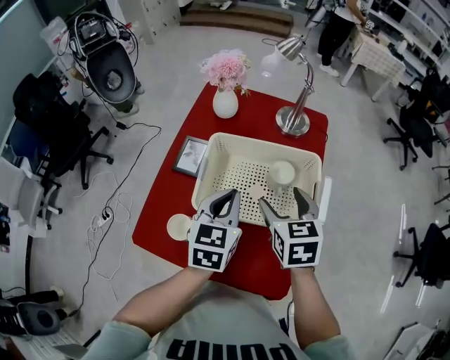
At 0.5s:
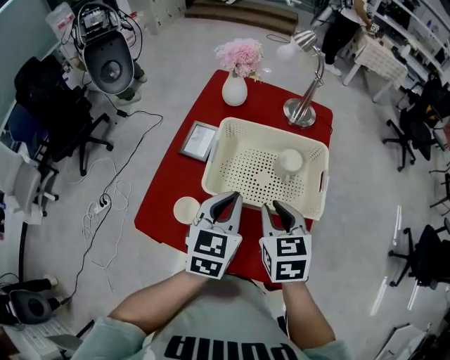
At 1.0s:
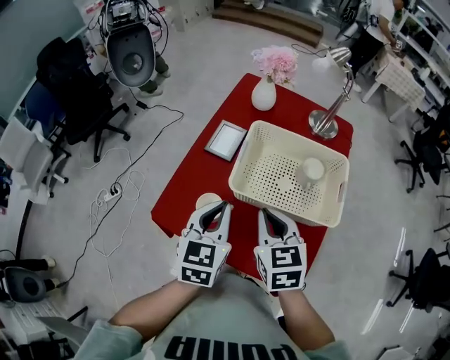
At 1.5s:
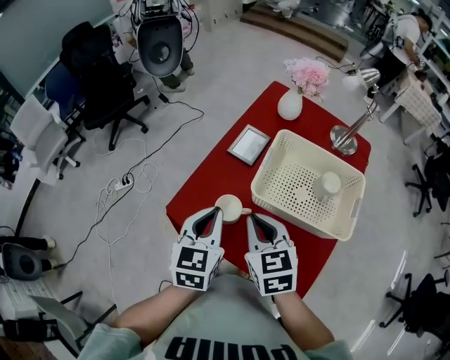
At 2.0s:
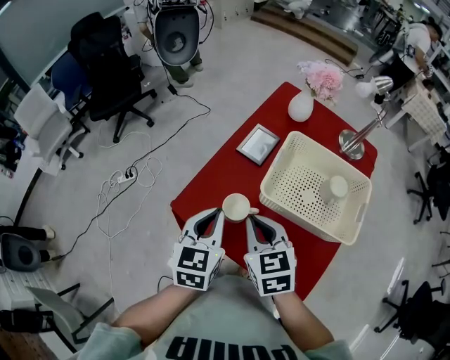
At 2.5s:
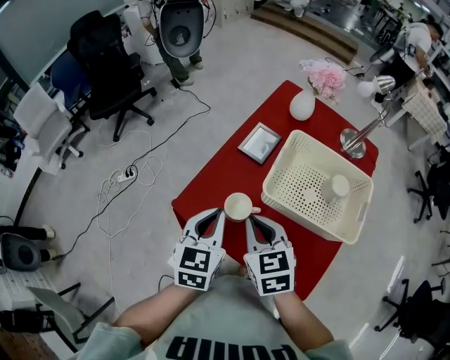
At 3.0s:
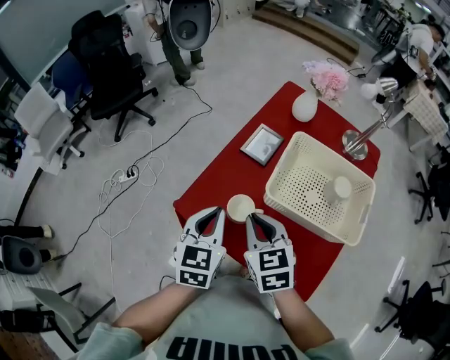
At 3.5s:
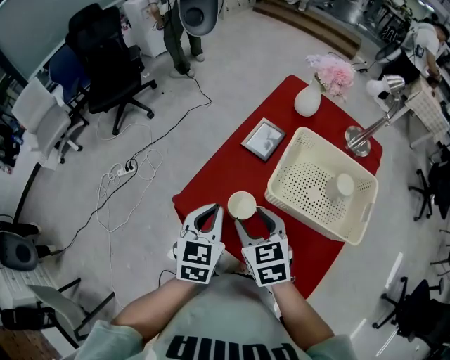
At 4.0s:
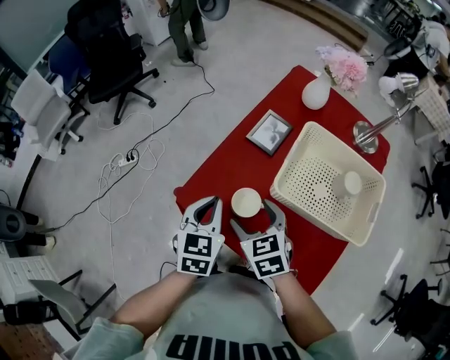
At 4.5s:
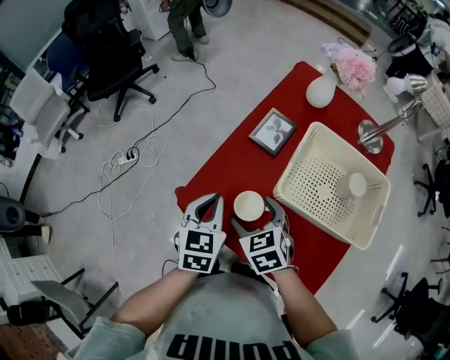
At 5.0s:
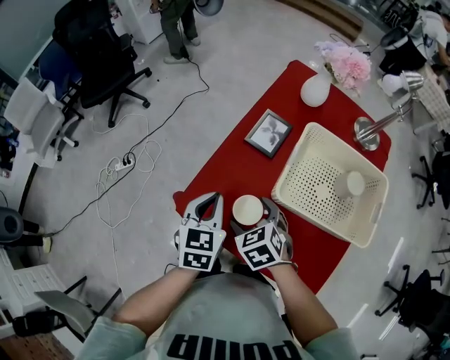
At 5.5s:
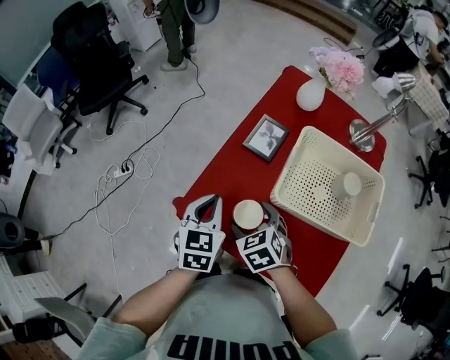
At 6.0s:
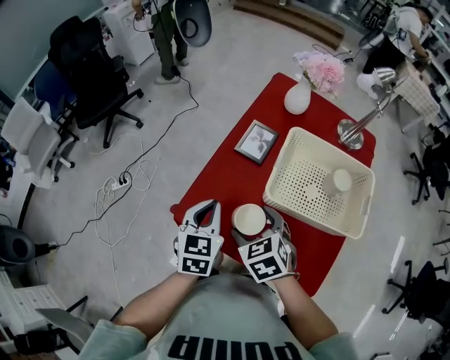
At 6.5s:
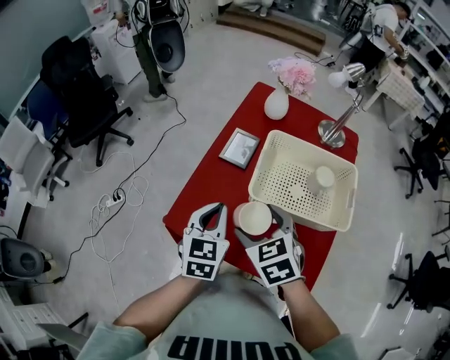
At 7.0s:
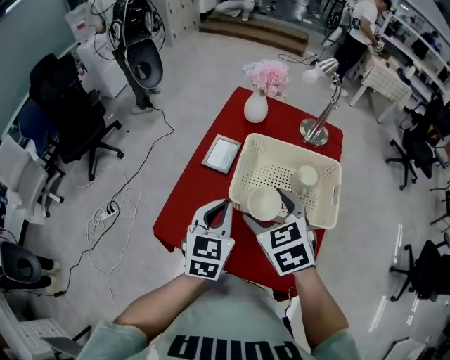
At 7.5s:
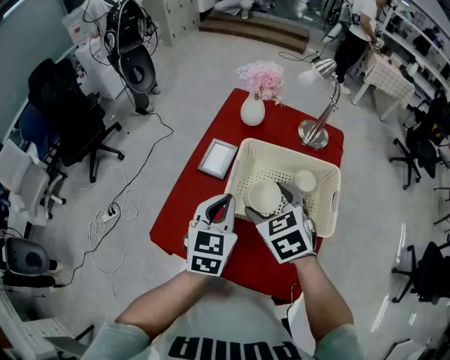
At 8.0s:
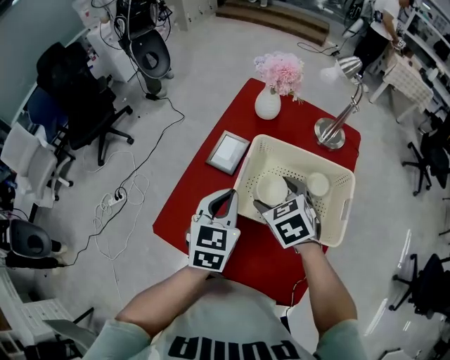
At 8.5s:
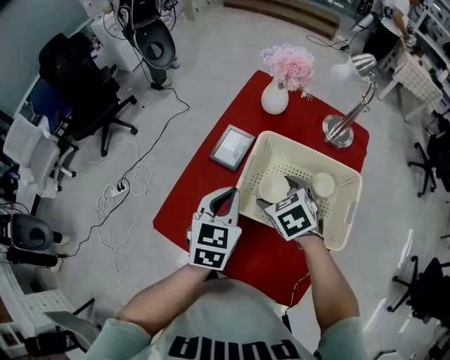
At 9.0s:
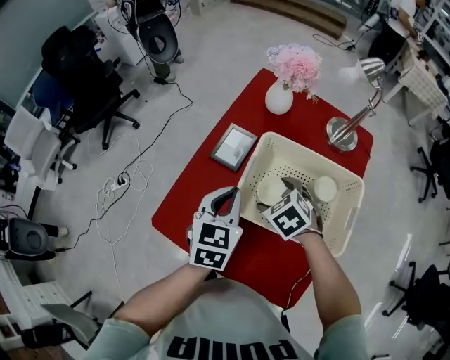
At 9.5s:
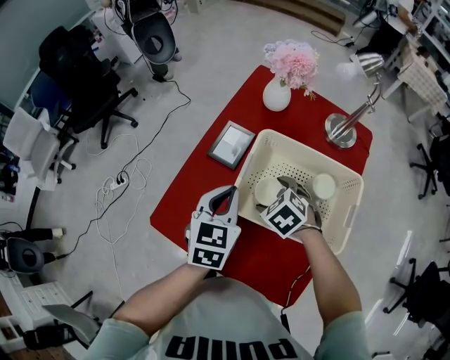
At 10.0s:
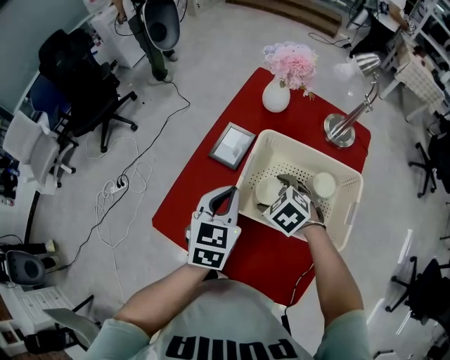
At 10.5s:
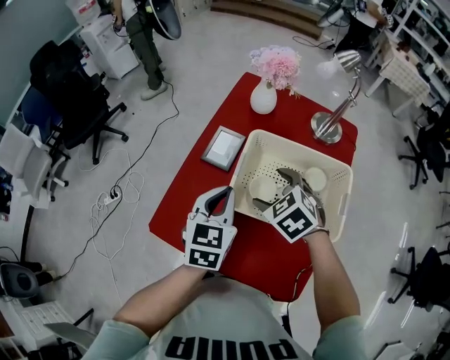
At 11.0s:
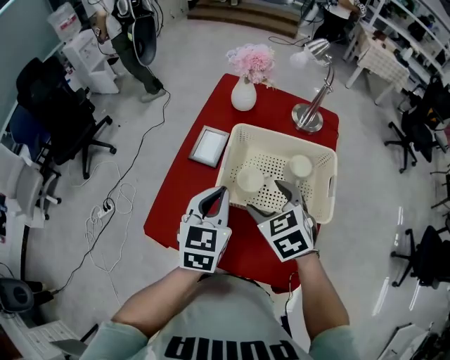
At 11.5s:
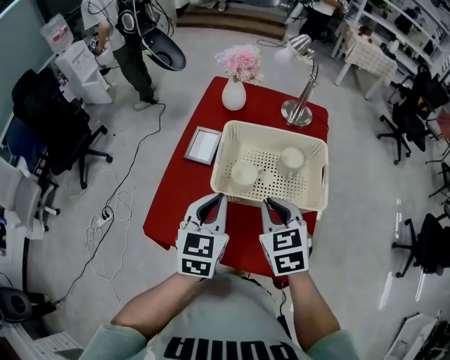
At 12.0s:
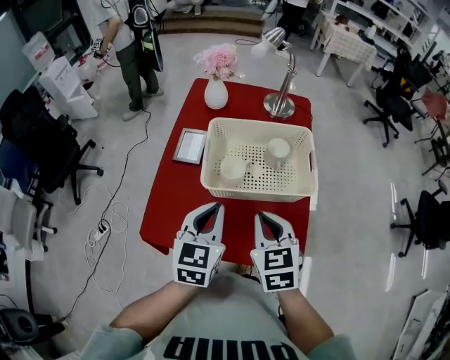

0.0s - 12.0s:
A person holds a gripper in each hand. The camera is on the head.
0.0s - 2.0s: The grippers both shift to the left and backward by some 25 cm. The right gripper changes its angle by approximately 30 degrees, and closes up, while the left gripper swivels roughly 20 degrees.
2.0s - 4.0s: The two grippers go roughly 5 cm downward. The right gripper opens up.
4.0s - 6.0s: The grippers make only small movements.
6.0s - 8.0s: The left gripper moves to the right, forward and upward, roughly 15 cm, while the right gripper goes approximately 20 cm to the right and forward.
8.0s - 10.0s: The right gripper heads downward, covering about 10 cm, and rotates about 20 degrees.
10.0s - 12.0s: The left gripper moves some 15 cm. Meanwhile the right gripper ends up some 20 cm from where it was, swivels roughly 60 degrees, and closes its fingers.

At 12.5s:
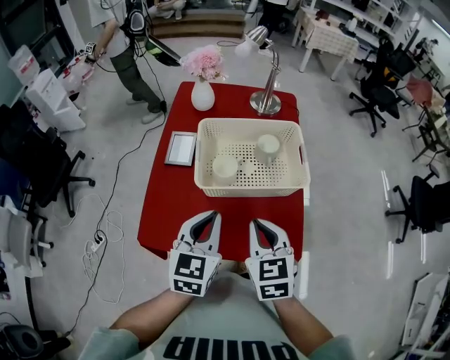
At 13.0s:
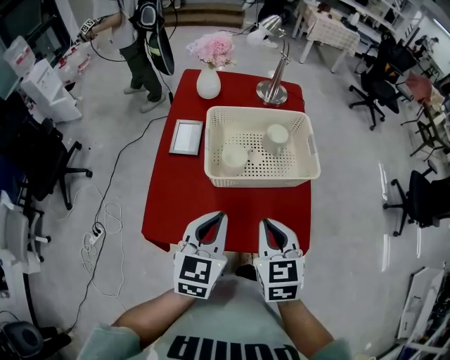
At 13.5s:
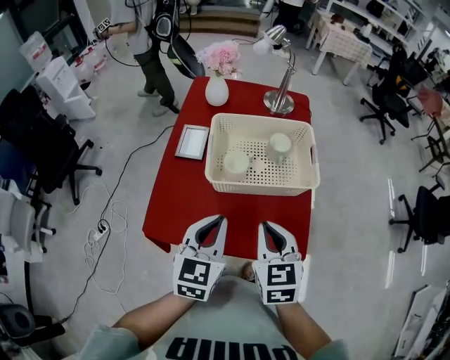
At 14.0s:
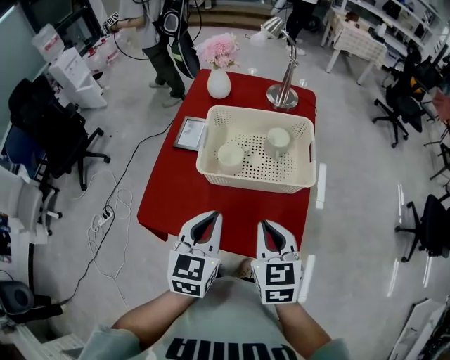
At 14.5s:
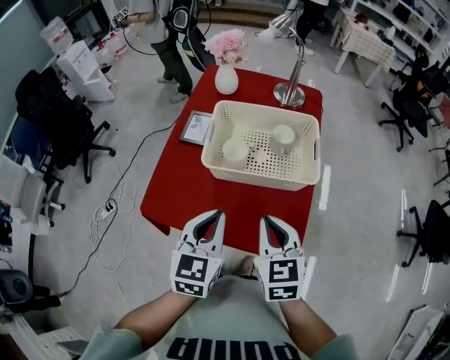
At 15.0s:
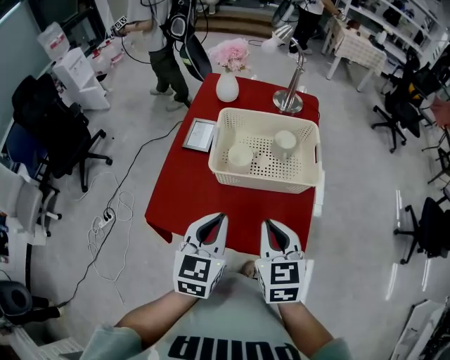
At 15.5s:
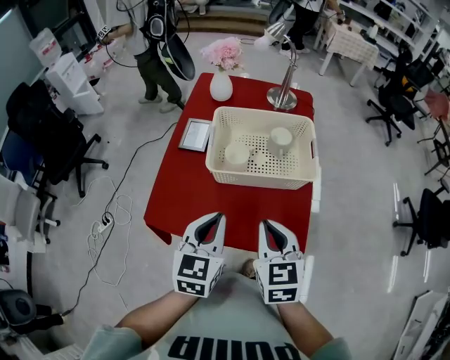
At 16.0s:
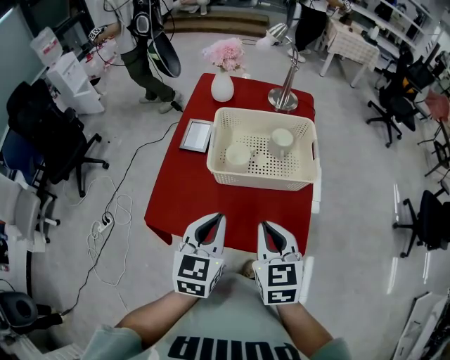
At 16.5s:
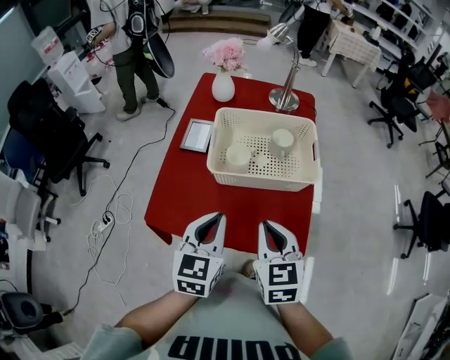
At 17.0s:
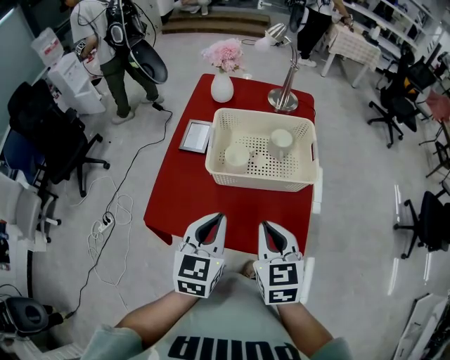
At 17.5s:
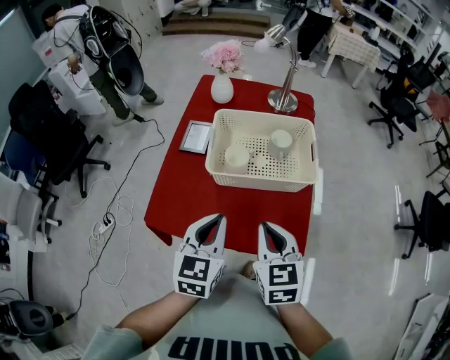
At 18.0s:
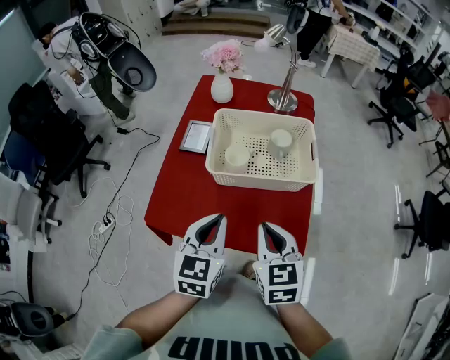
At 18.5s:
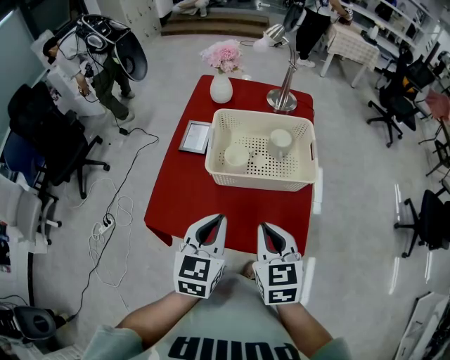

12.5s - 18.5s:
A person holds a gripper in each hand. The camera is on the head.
12.5s - 14.5s: The left gripper shifts by roughly 5 cm.
14.5s - 16.5s: There are only small adjustments of the grippers.
16.5s - 18.5s: The two grippers keep their place.

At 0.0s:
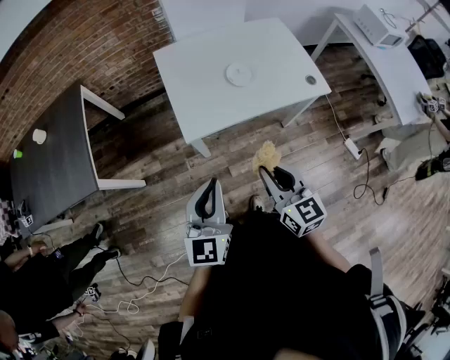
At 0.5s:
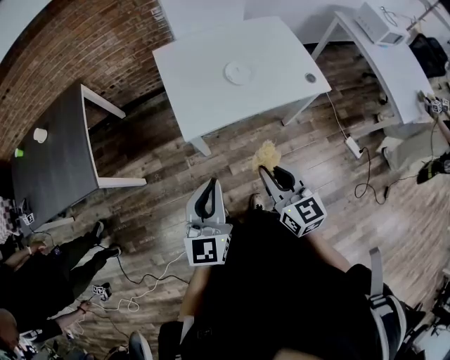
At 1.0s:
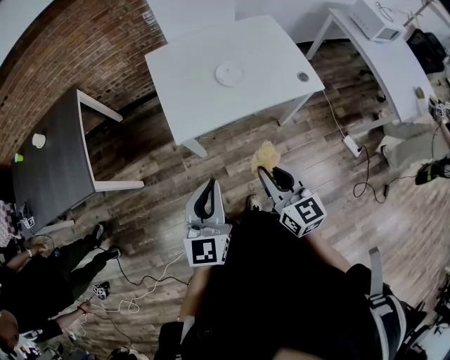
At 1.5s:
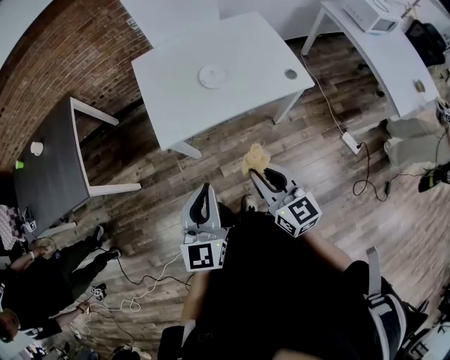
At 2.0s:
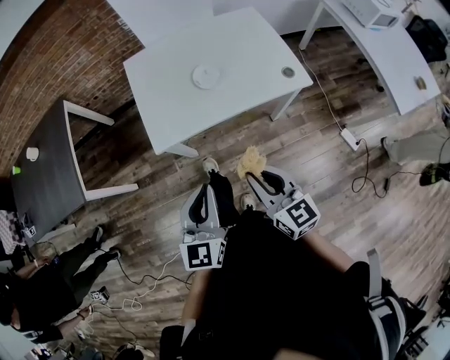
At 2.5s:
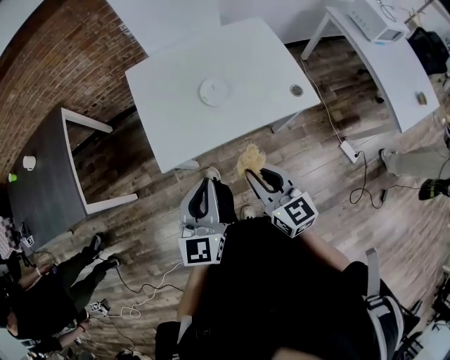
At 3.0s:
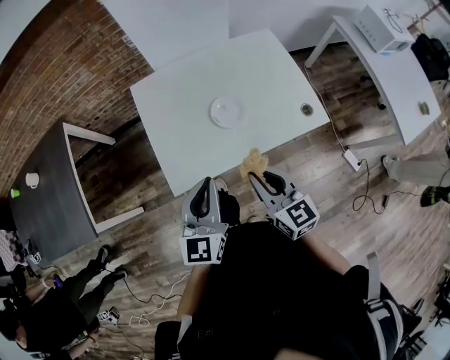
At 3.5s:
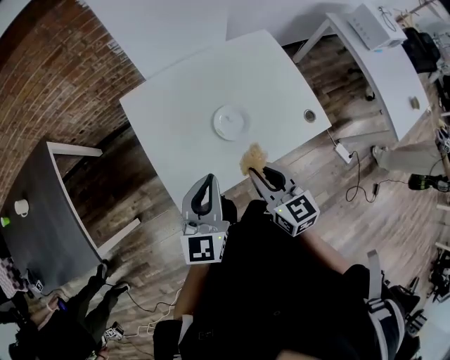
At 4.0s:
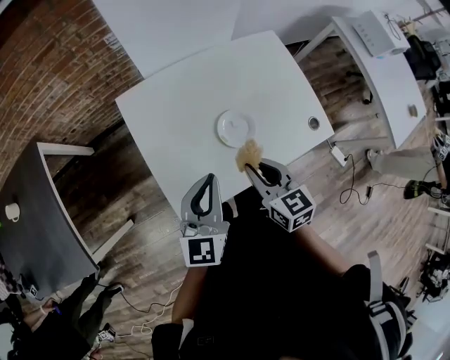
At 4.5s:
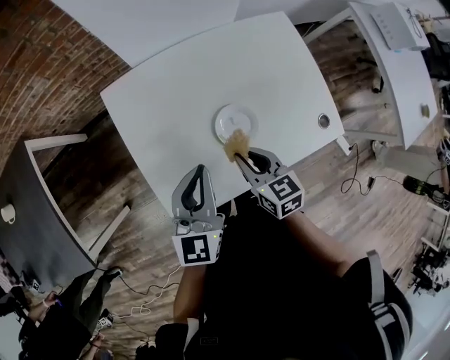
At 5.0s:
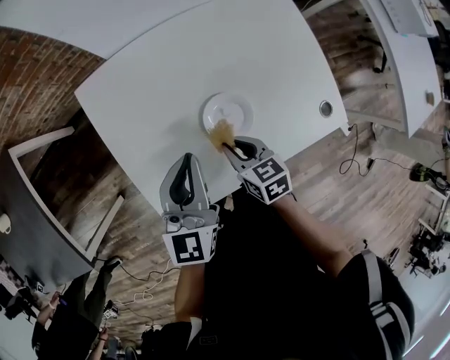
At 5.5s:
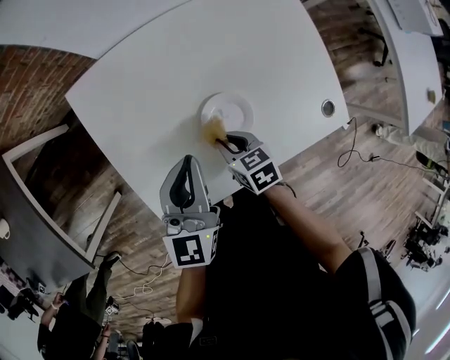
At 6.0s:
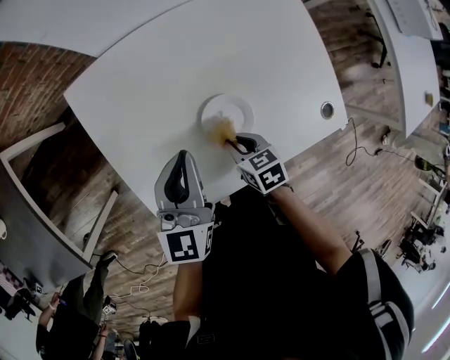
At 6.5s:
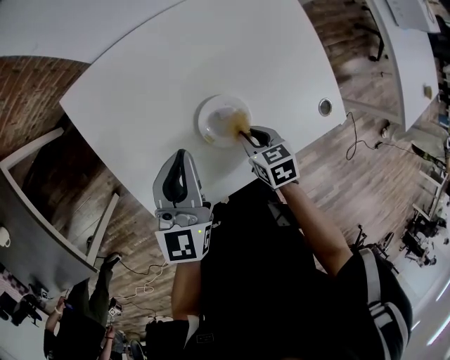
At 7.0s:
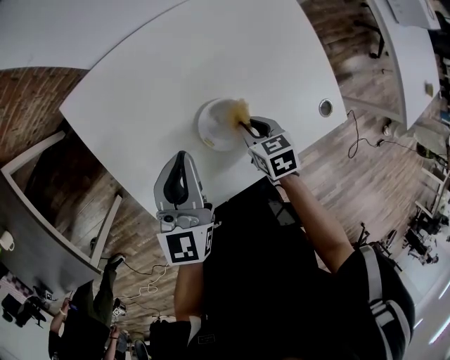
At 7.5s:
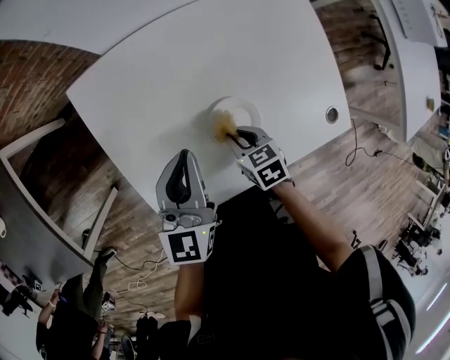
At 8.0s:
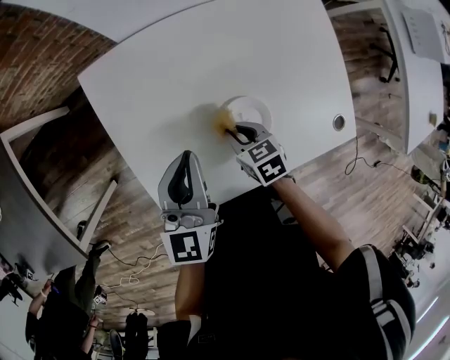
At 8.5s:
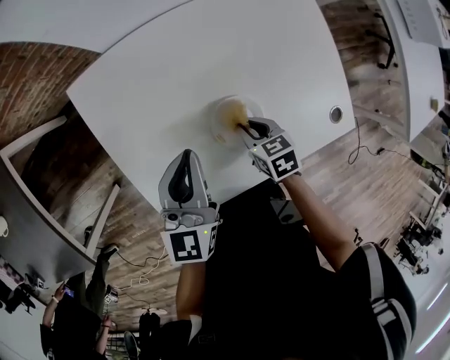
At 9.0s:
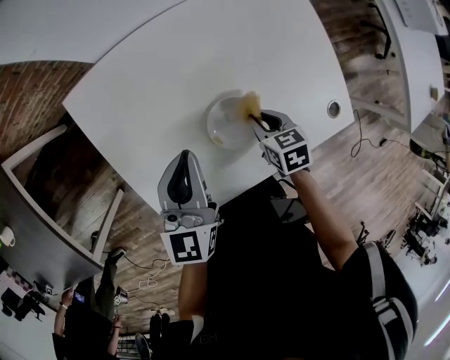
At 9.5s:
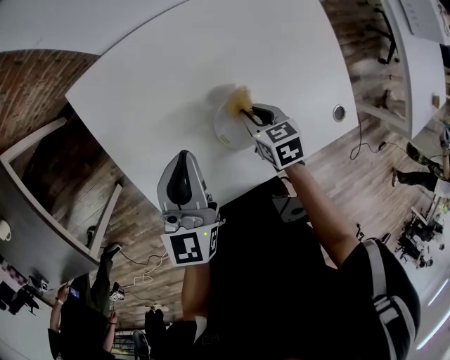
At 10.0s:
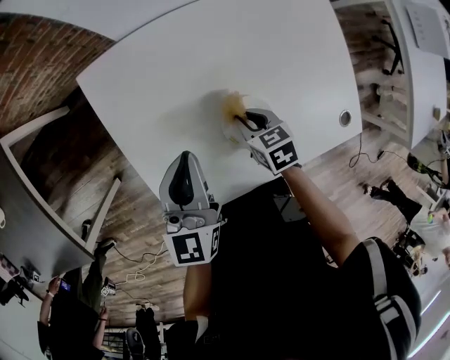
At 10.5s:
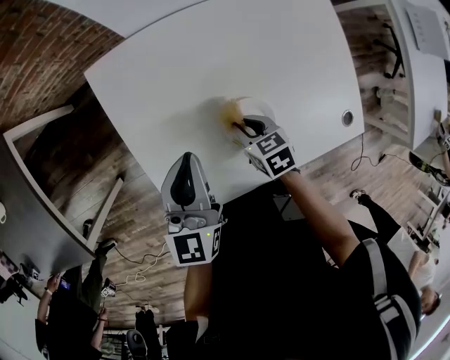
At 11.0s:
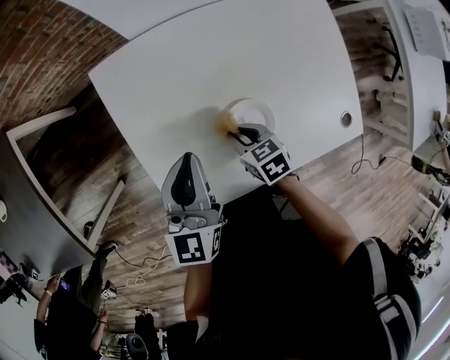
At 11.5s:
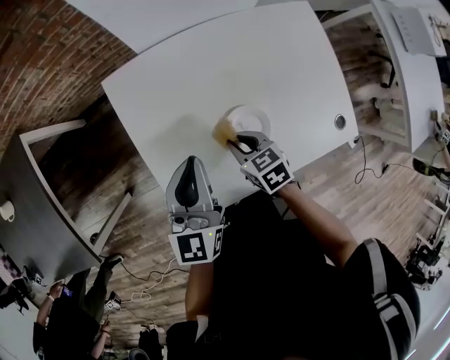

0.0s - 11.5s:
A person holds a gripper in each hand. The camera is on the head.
0.0s - 2.0s: The grippers both shift to the right by approximately 10 cm.
2.0s - 4.0s: The grippers both shift forward by approximately 35 cm.
4.0s - 6.0s: The right gripper is displaced downward by roughly 20 cm, and changes its angle by roughly 30 degrees, while the left gripper goes approximately 15 cm forward and downward.
7.5s - 9.5s: The right gripper changes place by approximately 5 cm.
9.5s - 11.5s: The left gripper shifts approximately 5 cm to the left. Meanwhile the right gripper travels to the left and upward by approximately 15 cm.
